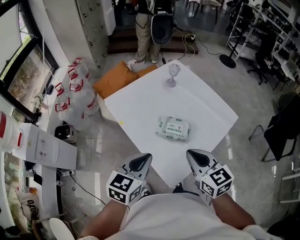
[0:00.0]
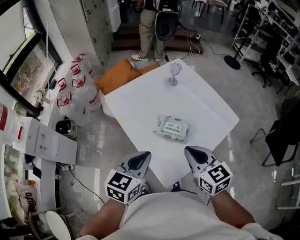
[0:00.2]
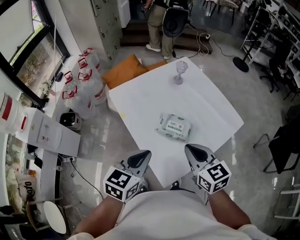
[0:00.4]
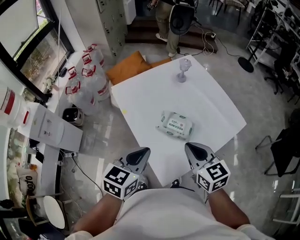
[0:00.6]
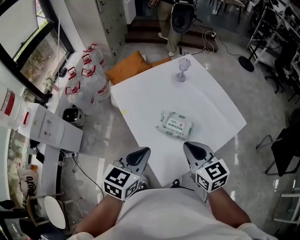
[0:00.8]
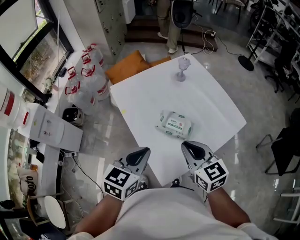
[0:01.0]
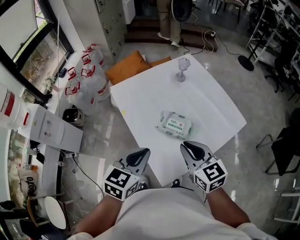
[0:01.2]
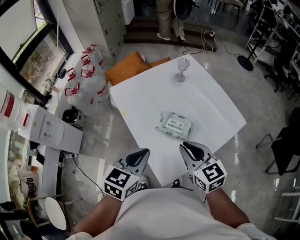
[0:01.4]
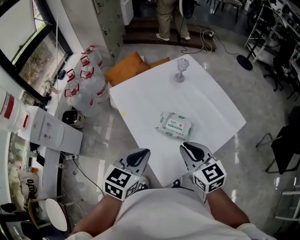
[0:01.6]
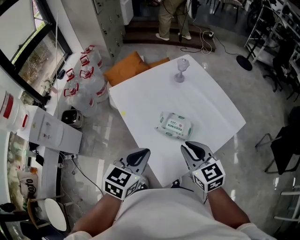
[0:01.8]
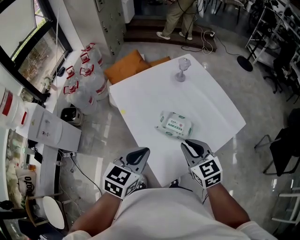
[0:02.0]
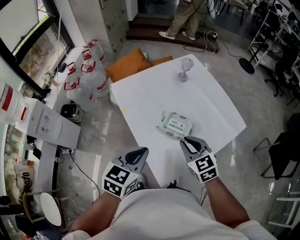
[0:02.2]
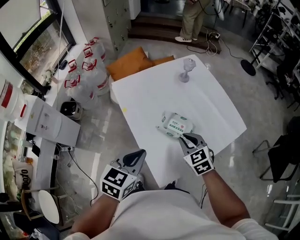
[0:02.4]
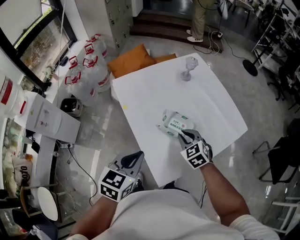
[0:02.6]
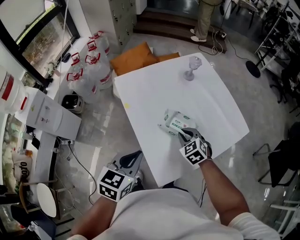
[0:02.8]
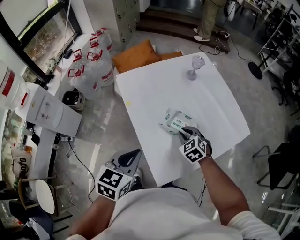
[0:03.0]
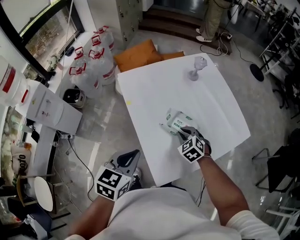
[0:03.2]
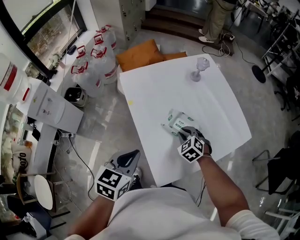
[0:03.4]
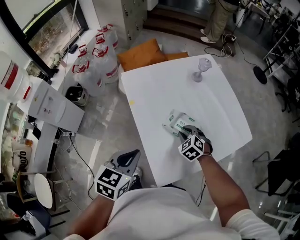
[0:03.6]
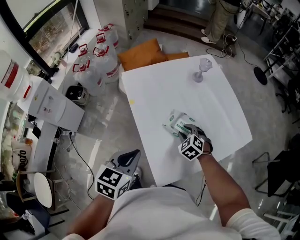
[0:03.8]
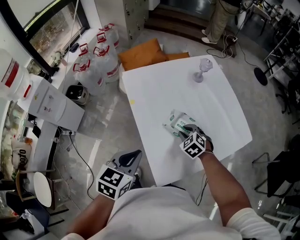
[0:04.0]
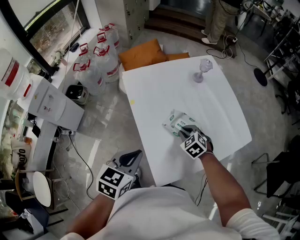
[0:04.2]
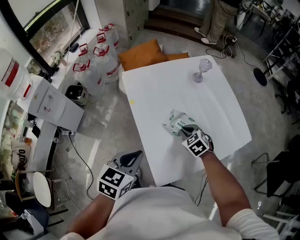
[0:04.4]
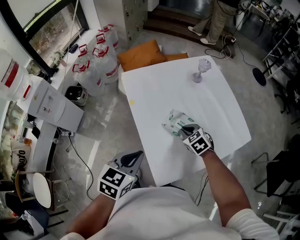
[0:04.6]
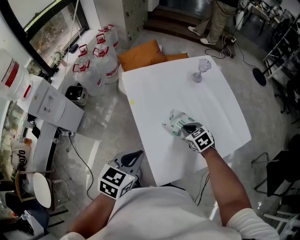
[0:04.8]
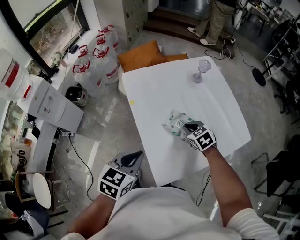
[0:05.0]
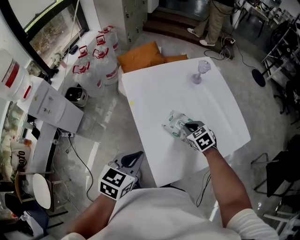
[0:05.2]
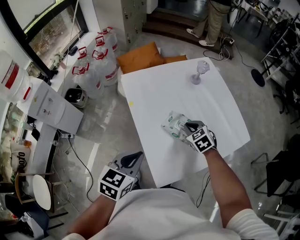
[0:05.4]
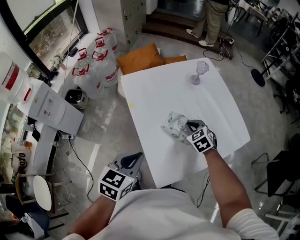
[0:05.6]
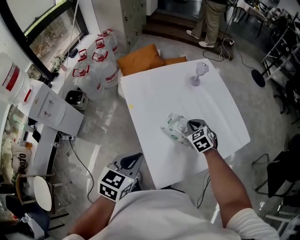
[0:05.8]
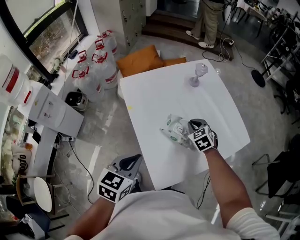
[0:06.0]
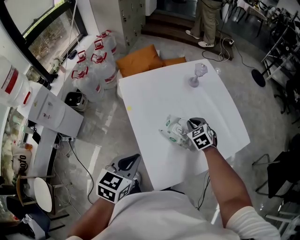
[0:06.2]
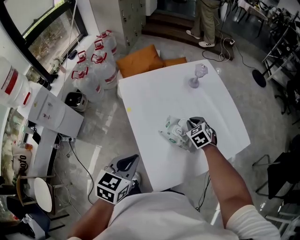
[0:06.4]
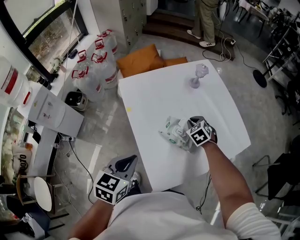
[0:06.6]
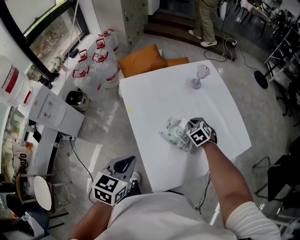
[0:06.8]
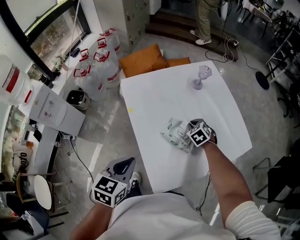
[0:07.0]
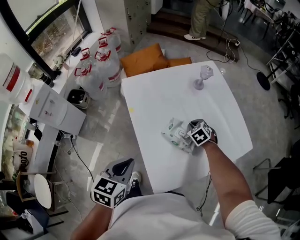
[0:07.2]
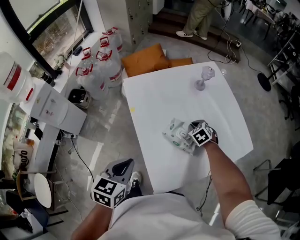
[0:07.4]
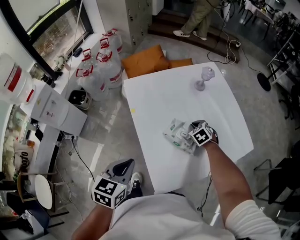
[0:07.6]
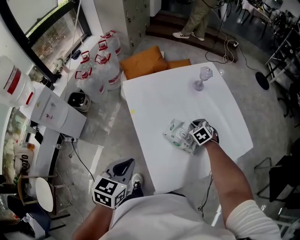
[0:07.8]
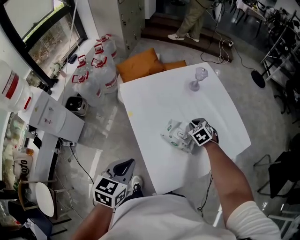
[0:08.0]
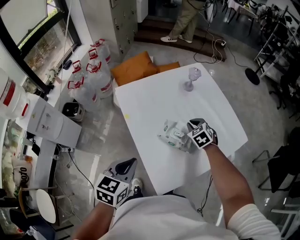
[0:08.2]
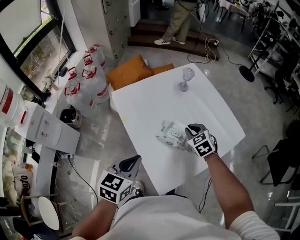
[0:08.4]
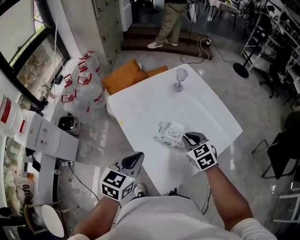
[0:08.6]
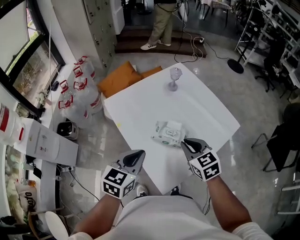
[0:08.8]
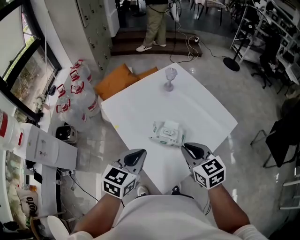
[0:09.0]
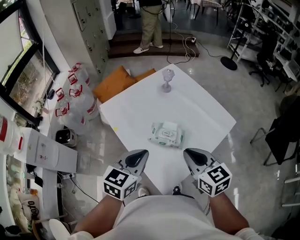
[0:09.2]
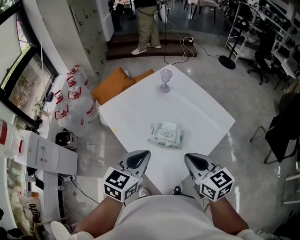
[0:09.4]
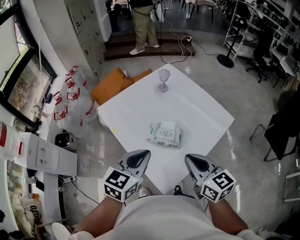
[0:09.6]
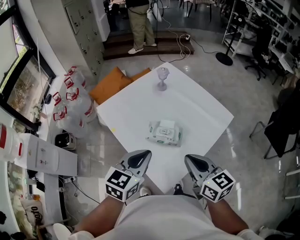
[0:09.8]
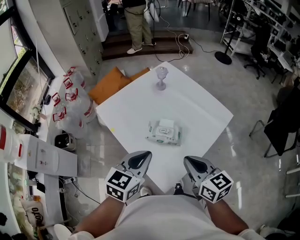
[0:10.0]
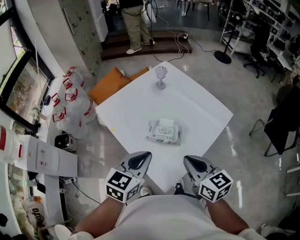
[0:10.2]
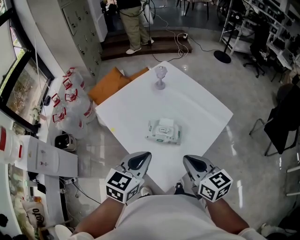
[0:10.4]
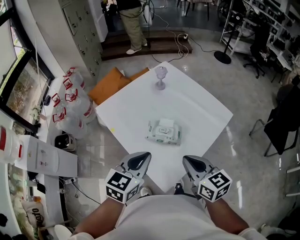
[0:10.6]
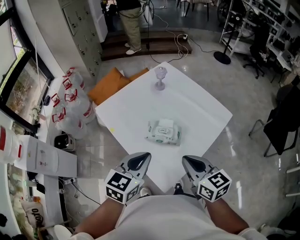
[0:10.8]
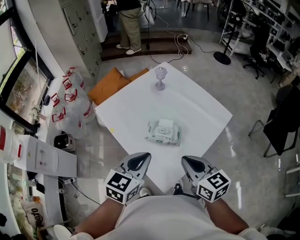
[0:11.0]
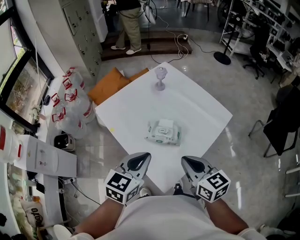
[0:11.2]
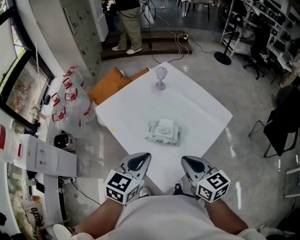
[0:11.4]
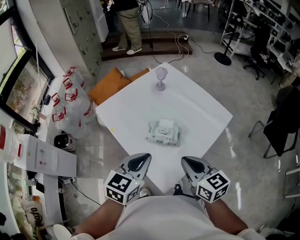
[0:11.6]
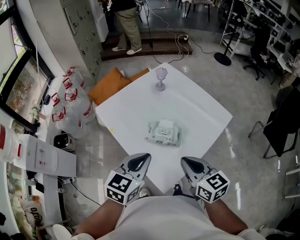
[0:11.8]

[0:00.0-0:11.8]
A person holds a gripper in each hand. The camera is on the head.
0:00.0 to 0:01.4: There are only small adjustments of the grippers.
0:01.4 to 0:03.0: The right gripper is displaced downward and forward by approximately 20 cm, and turns by about 40 degrees. The left gripper ends up approximately 5 cm from where it was.
0:03.0 to 0:04.4: The grippers make only small movements.
0:04.4 to 0:06.0: The right gripper shifts roughly 5 cm forward.
0:06.0 to 0:07.4: The right gripper is displaced downward by roughly 10 cm.
0:07.4 to 0:08.8: The right gripper moves upward and backward, roughly 25 cm, and changes its angle by roughly 30 degrees. Meanwhile the left gripper shifts about 10 cm to the right and upward, and changes its angle by approximately 20 degrees.
0:08.8 to 0:10.4: The right gripper is displaced backward and upward by roughly 10 cm, and changes its angle by some 30 degrees. The left gripper travels to the right by about 5 cm.
0:10.4 to 0:11.8: Both grippers stay about where they are.

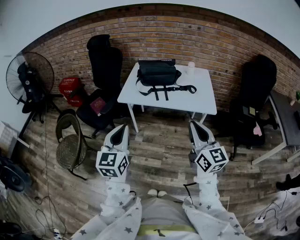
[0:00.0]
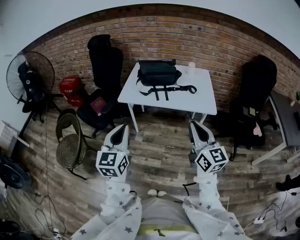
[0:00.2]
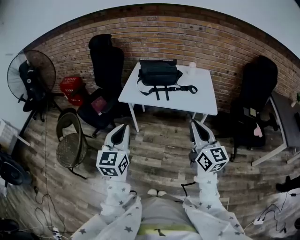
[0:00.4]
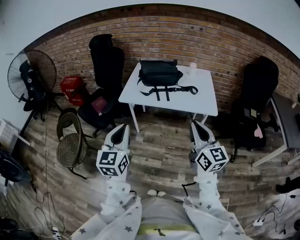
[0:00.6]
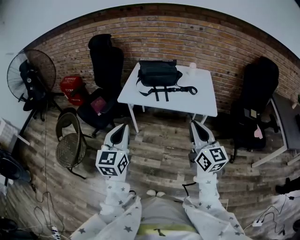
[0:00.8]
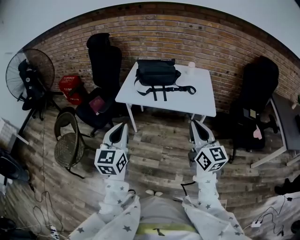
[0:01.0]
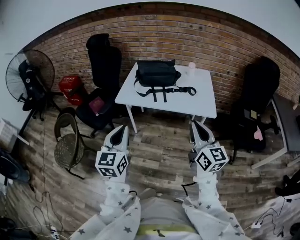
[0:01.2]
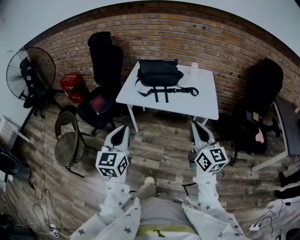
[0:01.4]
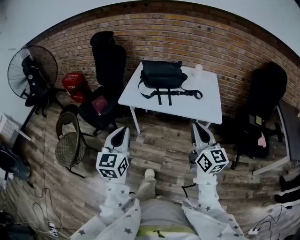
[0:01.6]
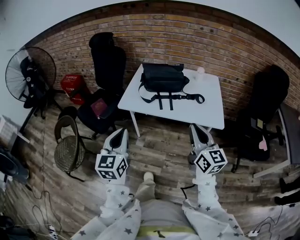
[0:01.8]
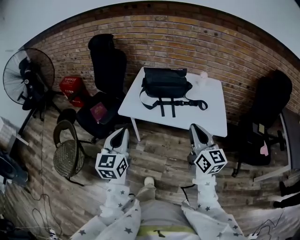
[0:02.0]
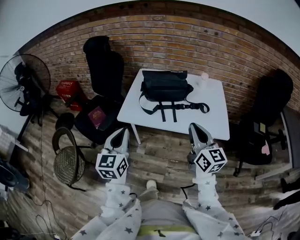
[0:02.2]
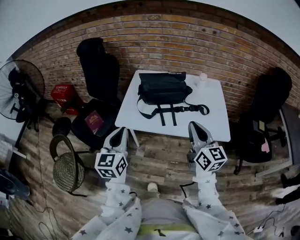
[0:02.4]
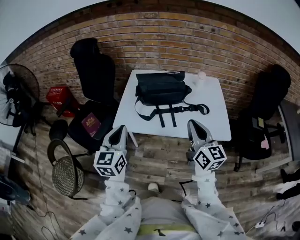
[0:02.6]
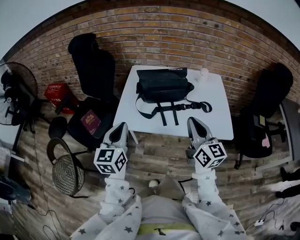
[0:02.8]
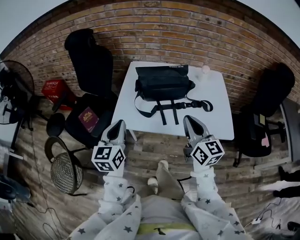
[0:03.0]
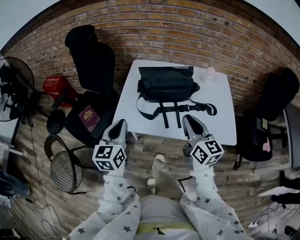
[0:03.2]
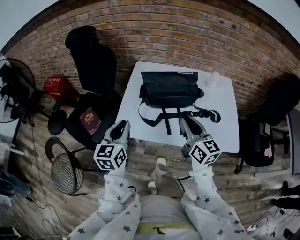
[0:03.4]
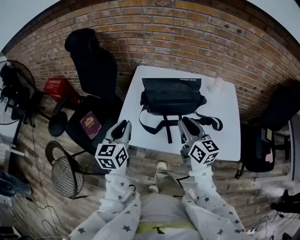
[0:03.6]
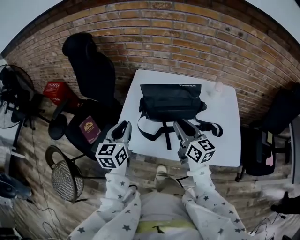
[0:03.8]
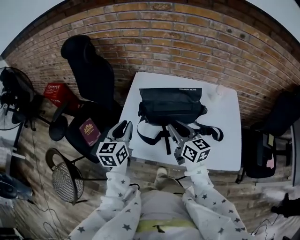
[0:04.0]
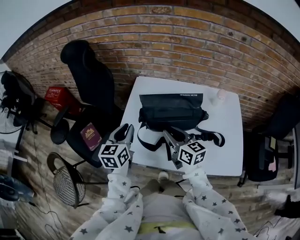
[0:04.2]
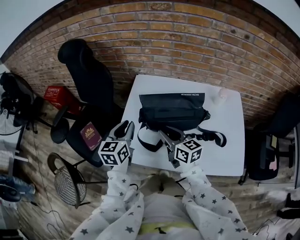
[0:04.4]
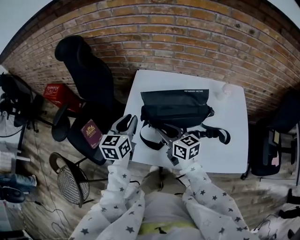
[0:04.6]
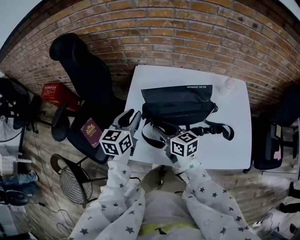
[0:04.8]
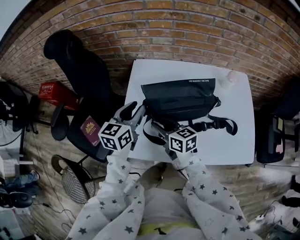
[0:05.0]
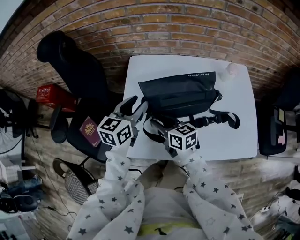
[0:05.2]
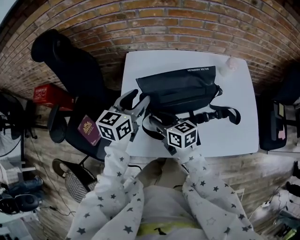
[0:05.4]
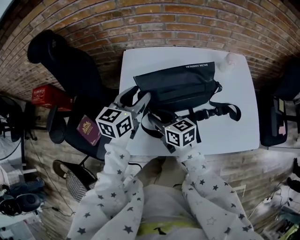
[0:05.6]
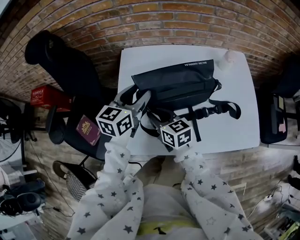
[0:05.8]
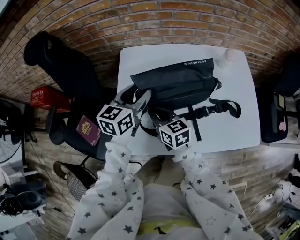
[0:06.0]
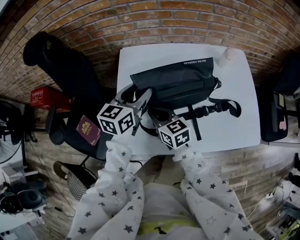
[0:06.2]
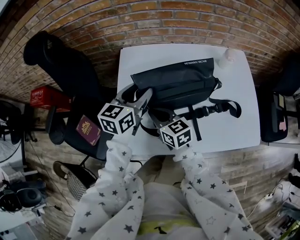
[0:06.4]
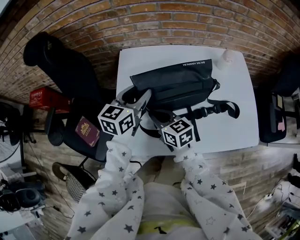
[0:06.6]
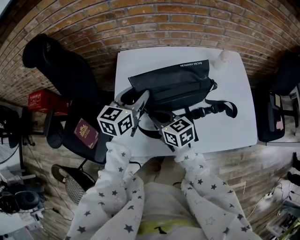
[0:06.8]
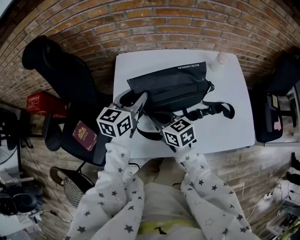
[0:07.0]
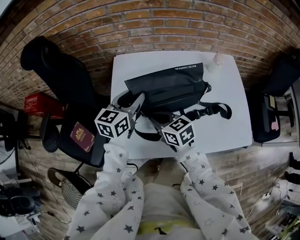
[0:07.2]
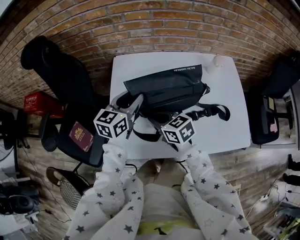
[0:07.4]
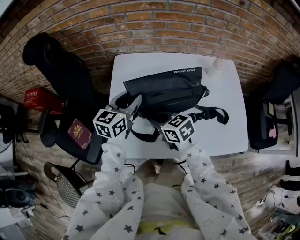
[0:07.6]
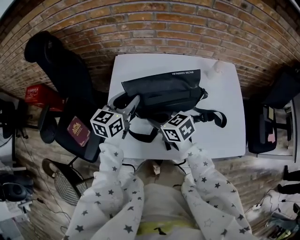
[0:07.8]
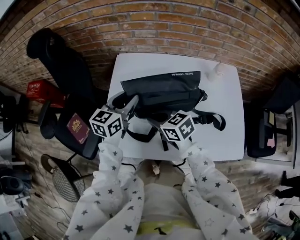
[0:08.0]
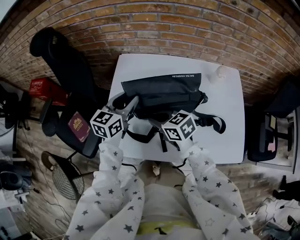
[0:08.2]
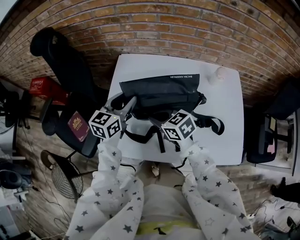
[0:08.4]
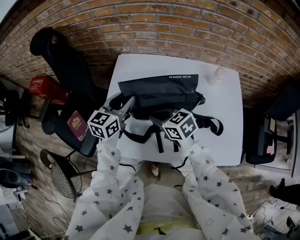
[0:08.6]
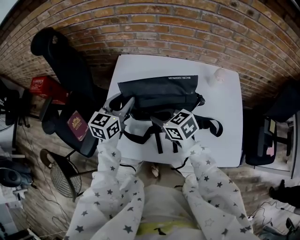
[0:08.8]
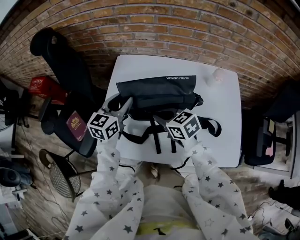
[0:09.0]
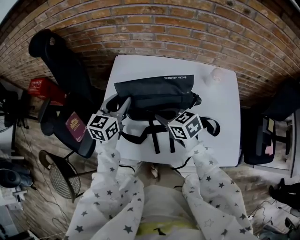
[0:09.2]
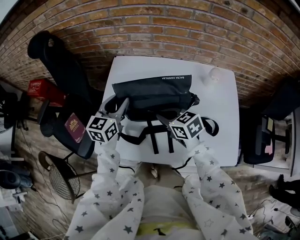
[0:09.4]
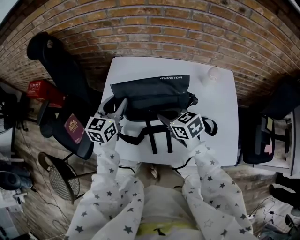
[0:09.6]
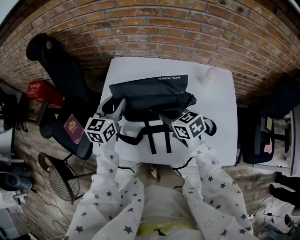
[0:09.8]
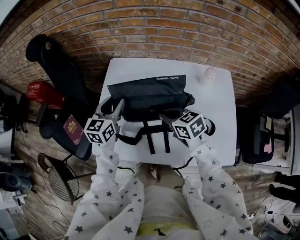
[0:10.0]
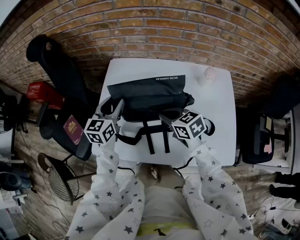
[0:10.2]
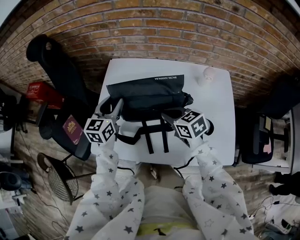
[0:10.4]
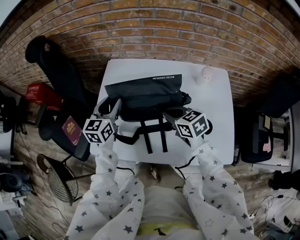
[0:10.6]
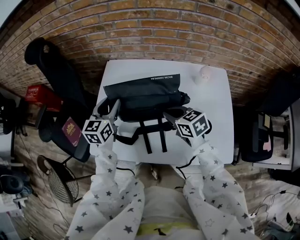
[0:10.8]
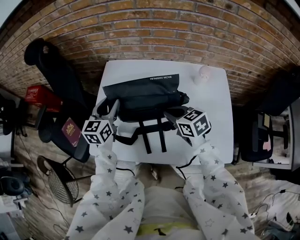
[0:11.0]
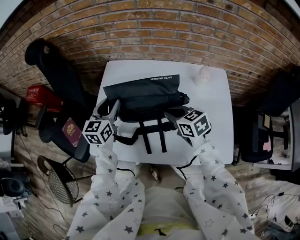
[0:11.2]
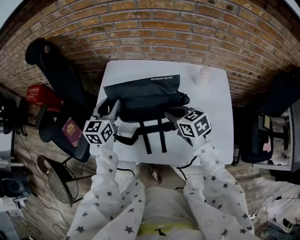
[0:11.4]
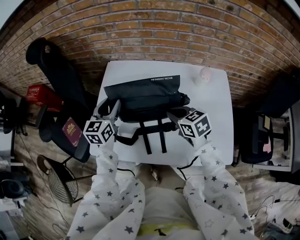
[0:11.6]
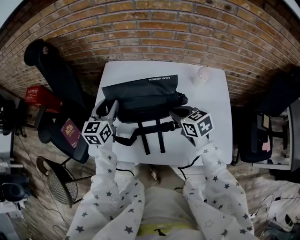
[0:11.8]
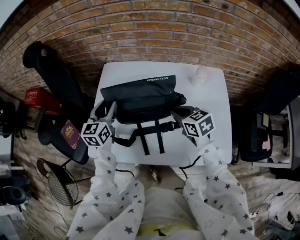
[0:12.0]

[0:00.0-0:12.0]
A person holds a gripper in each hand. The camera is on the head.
0:00.0 to 0:01.6: Both grippers travel together forward, some 5 cm.
0:01.6 to 0:03.0: Both grippers move forward, some 25 cm.
0:03.0 to 0:04.4: The right gripper heads forward and downward, covering approximately 25 cm, swivels roughly 30 degrees, and opens. The left gripper heads forward, covering some 20 cm.
0:04.4 to 0:06.0: The left gripper is displaced forward and to the right by about 10 cm, swivels approximately 30 degrees, and opens; the right gripper heads downward and to the left, covering some 10 cm.
0:06.0 to 0:07.6: The grippers move only a little.
0:07.6 to 0:09.0: The right gripper heads to the right, covering about 5 cm.
0:09.0 to 0:10.4: The right gripper shifts roughly 10 cm to the right.
0:10.4 to 0:12.0: The right gripper shifts some 5 cm to the right.
